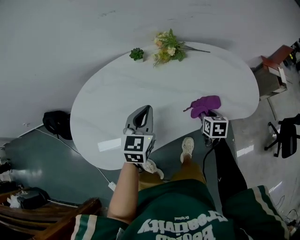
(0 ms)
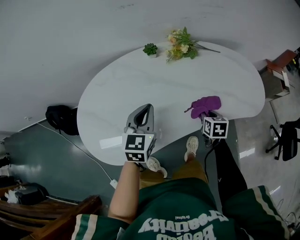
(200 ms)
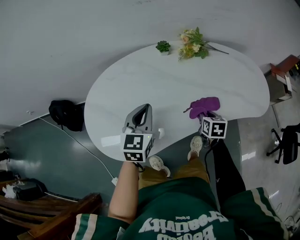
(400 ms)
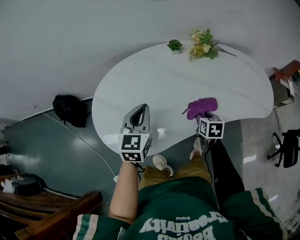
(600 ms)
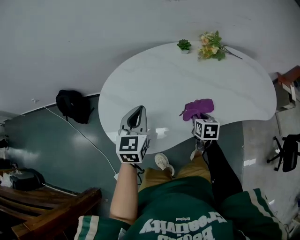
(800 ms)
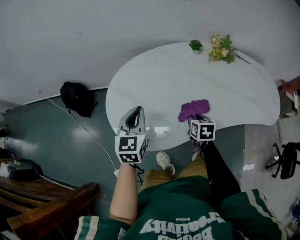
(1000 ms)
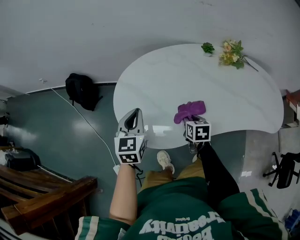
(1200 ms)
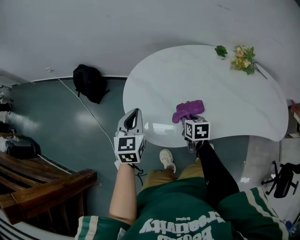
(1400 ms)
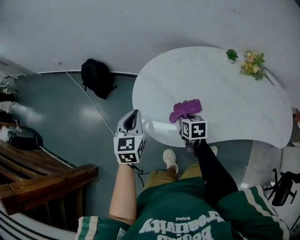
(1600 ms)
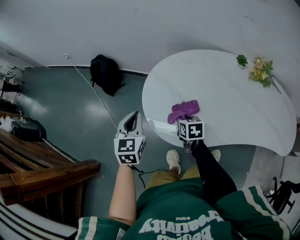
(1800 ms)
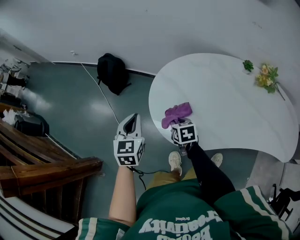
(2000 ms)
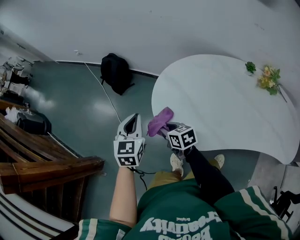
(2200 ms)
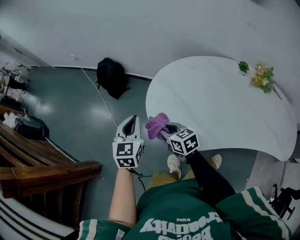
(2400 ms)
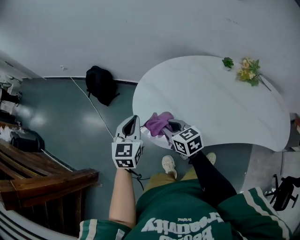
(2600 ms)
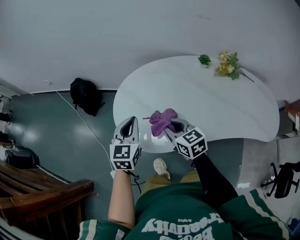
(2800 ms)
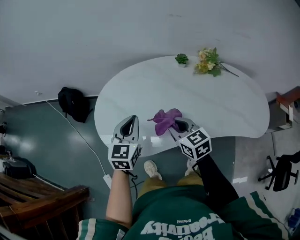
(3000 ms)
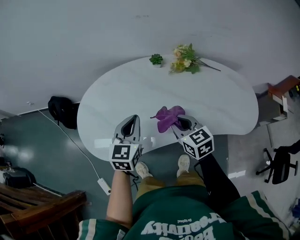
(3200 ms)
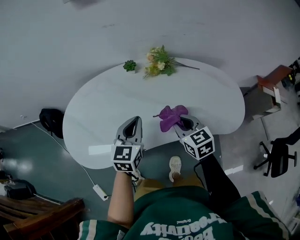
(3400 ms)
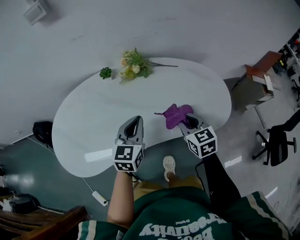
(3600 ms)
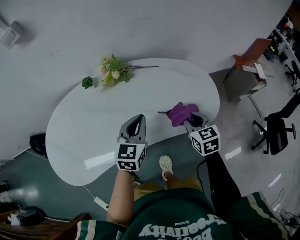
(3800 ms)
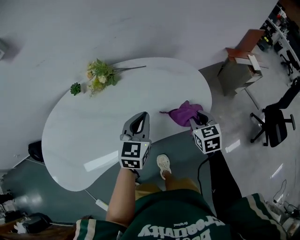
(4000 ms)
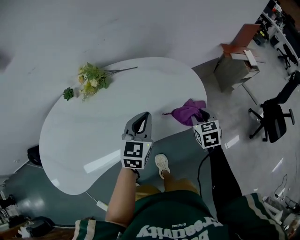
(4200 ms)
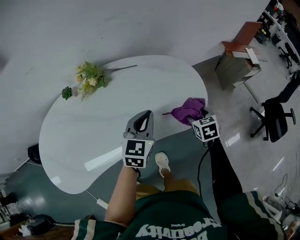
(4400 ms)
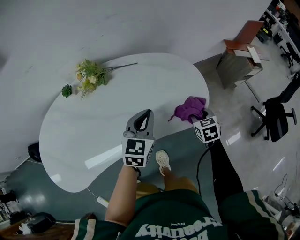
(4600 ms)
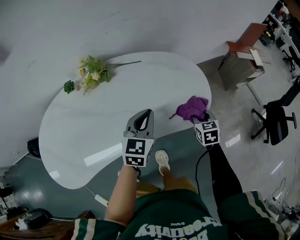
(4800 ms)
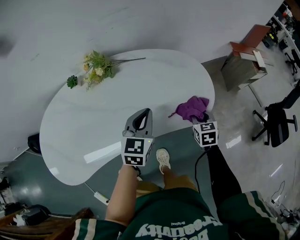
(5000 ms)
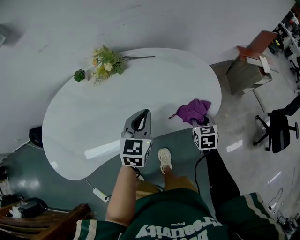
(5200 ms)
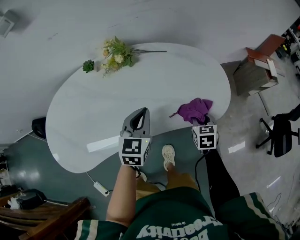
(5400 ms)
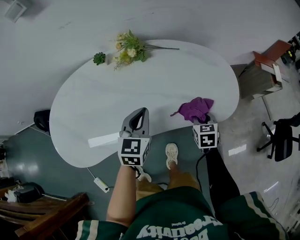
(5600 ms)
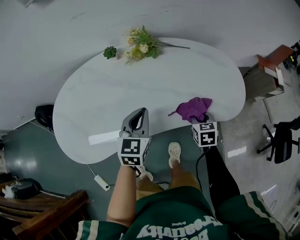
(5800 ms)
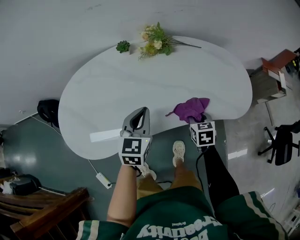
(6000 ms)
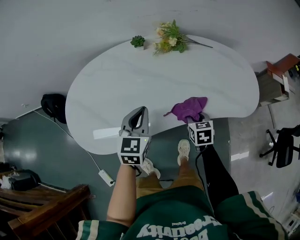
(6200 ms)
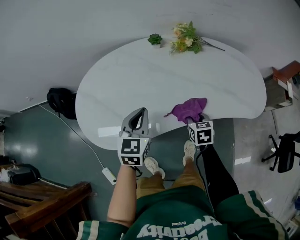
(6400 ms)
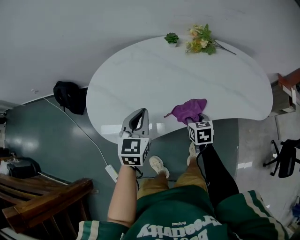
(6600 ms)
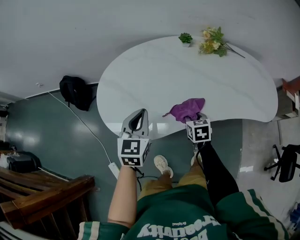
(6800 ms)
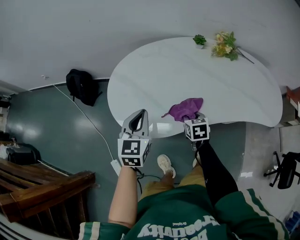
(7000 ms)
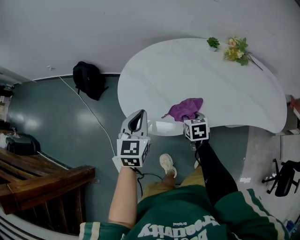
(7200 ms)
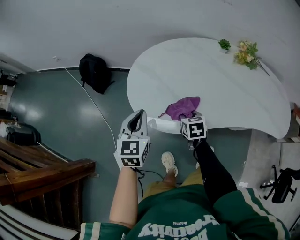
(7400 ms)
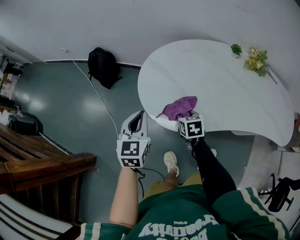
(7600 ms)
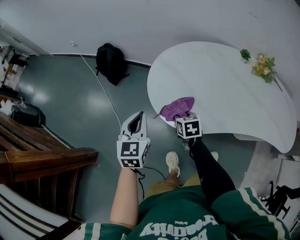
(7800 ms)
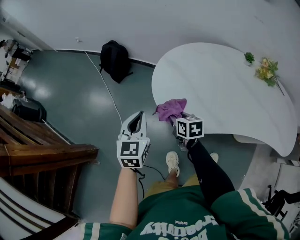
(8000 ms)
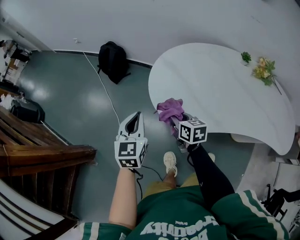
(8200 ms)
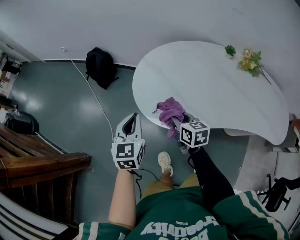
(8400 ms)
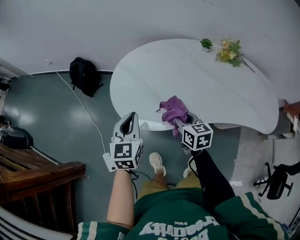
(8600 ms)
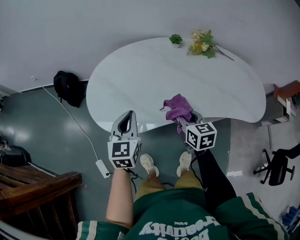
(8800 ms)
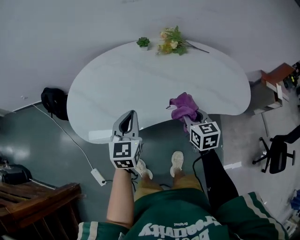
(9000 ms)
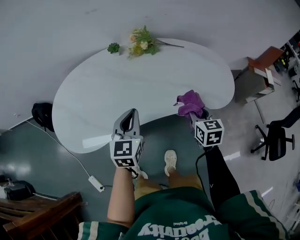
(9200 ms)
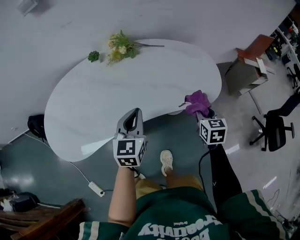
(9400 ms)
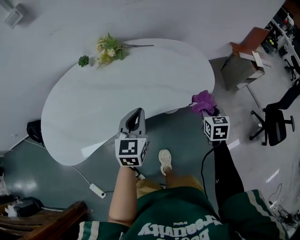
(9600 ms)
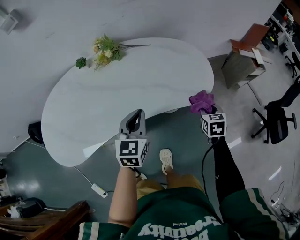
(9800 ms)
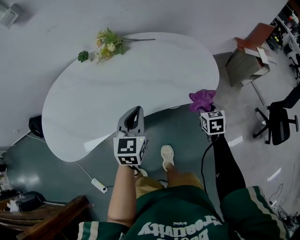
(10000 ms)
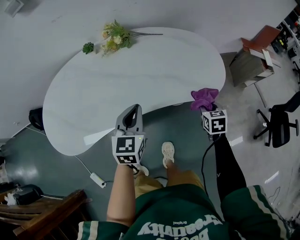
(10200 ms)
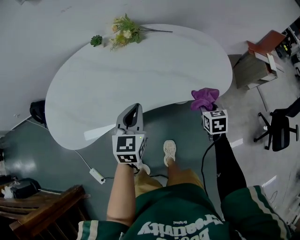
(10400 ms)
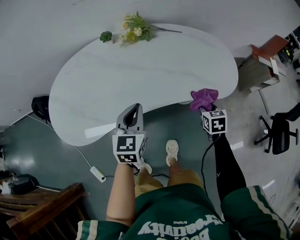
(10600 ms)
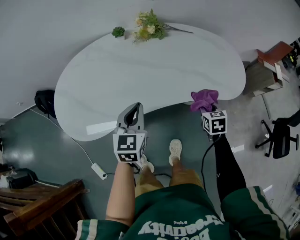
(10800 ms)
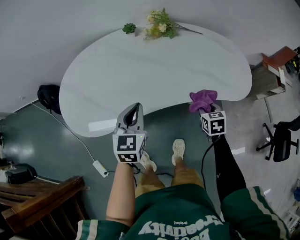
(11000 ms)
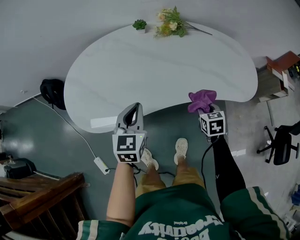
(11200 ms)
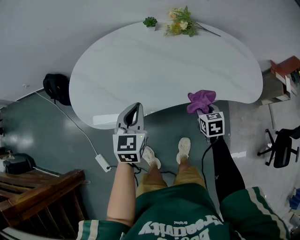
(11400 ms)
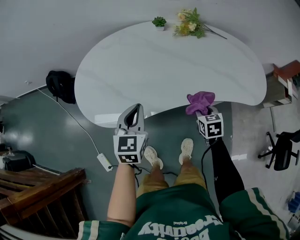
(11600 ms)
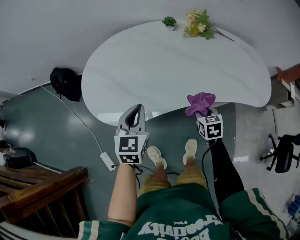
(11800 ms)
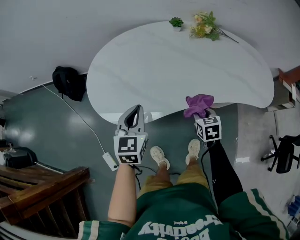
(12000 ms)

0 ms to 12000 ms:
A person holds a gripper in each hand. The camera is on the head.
0 ms to 1600 ms: The pair of grippers is taken approximately 50 cm. The left gripper turns by roughly 30 degrees. Meanwhile the right gripper changes its angle by some 30 degrees.
1600 ms to 3000 ms: The right gripper moves roughly 20 cm, and swivels approximately 30 degrees, while the left gripper ends up about 20 cm from where it was.
3000 ms to 4400 ms: The two grippers travel together, roughly 60 cm. The left gripper changes its angle by approximately 30 degrees; the right gripper rotates roughly 50 degrees, and opens up.
4400 ms to 6000 ms: The left gripper heads to the left and backward, covering roughly 30 cm, and changes its angle by some 20 degrees. The right gripper heads to the left, covering about 25 cm, and closes its fingers.
6000 ms to 7600 ms: The two grippers travel together, about 50 cm. The left gripper turns by approximately 30 degrees. Meanwhile the right gripper changes its angle by approximately 30 degrees.
7600 ms to 9000 ms: The right gripper moves about 40 cm, and changes its angle by about 30 degrees. The left gripper shifts by some 35 cm.
9000 ms to 10400 ms: The right gripper changes place by approximately 30 cm, and changes its angle by roughly 20 degrees; the left gripper ends up roughly 25 cm from where it was.
10400 ms to 12000 ms: The grippers both shift to the left by about 35 cm.

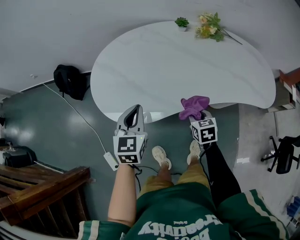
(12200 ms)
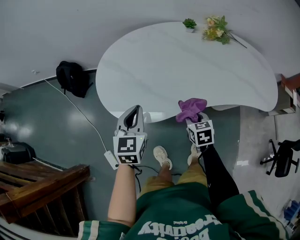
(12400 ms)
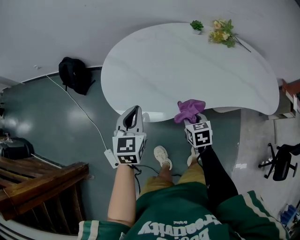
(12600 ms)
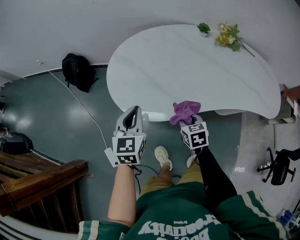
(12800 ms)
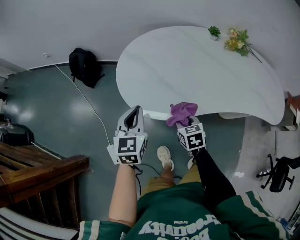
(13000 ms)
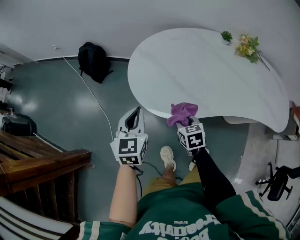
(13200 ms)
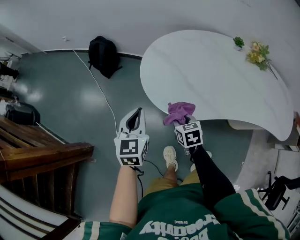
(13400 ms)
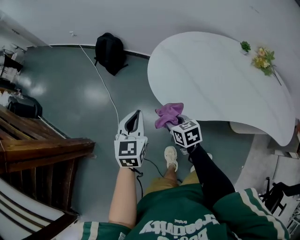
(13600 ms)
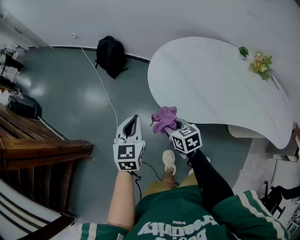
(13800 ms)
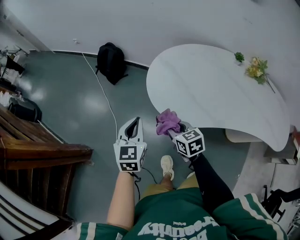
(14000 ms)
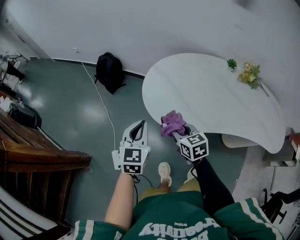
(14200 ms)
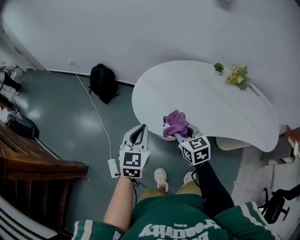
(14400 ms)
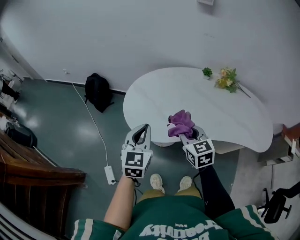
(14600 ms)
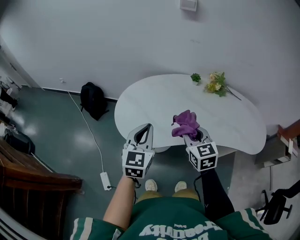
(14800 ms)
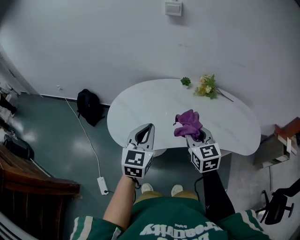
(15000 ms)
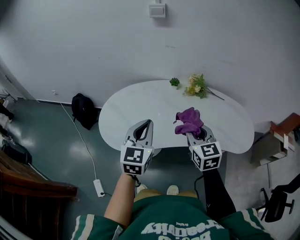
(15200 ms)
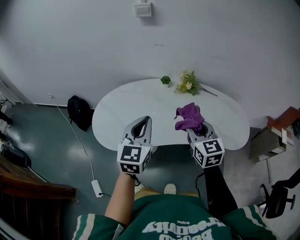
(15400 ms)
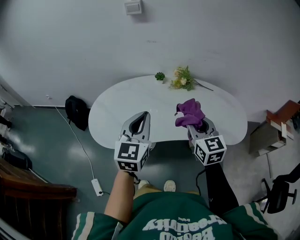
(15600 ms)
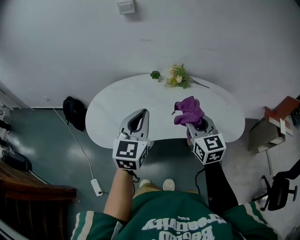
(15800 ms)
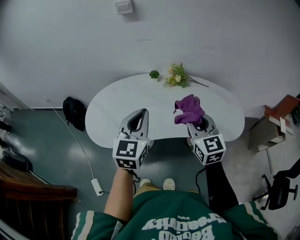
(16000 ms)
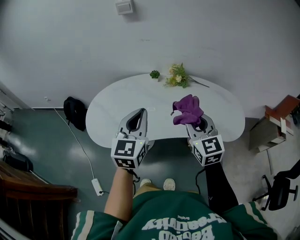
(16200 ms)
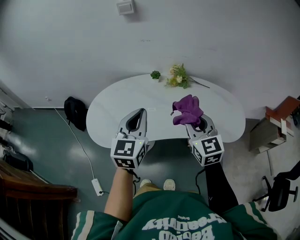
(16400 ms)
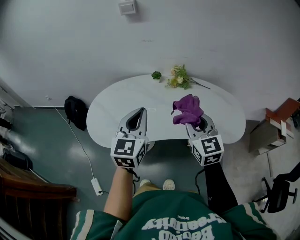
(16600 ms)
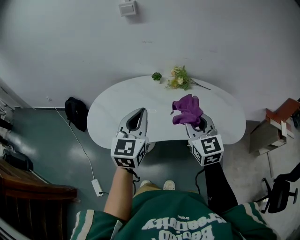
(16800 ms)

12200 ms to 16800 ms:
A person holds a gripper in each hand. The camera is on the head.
12200 ms to 13800 ms: The right gripper changes place by roughly 35 cm, and turns by roughly 40 degrees; the left gripper ends up about 25 cm from where it was, and changes its angle by roughly 20 degrees.
13800 ms to 15200 ms: The two grippers travel together, about 40 cm. The right gripper changes its angle by roughly 40 degrees; the left gripper rotates approximately 30 degrees.
15200 ms to 16800 ms: The grippers both shift to the right by roughly 10 cm.

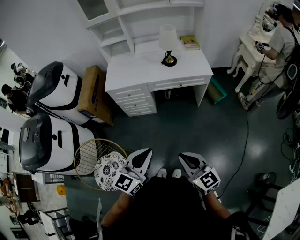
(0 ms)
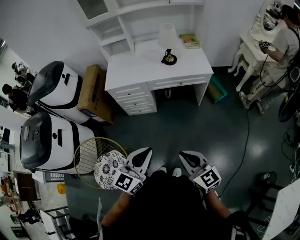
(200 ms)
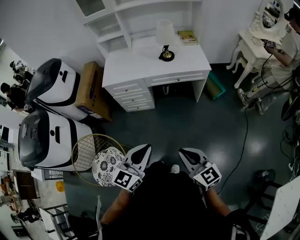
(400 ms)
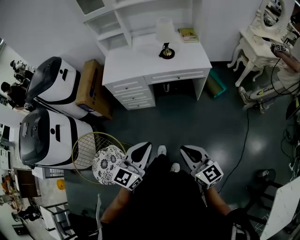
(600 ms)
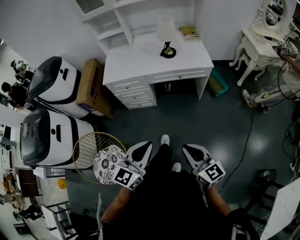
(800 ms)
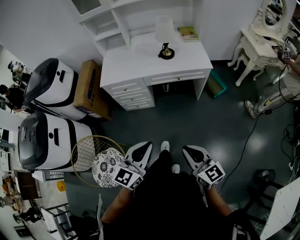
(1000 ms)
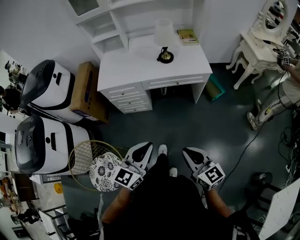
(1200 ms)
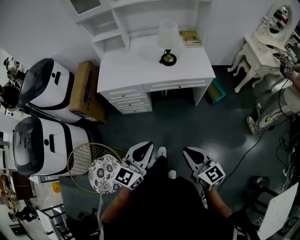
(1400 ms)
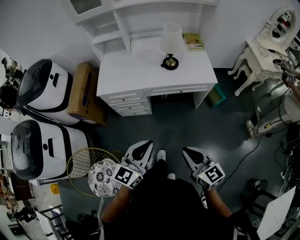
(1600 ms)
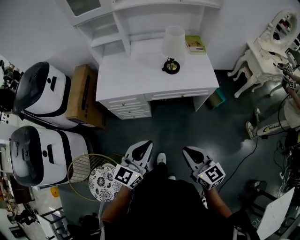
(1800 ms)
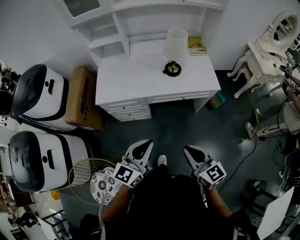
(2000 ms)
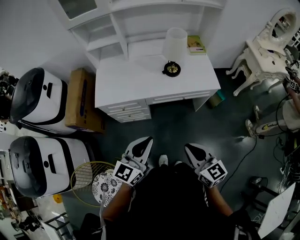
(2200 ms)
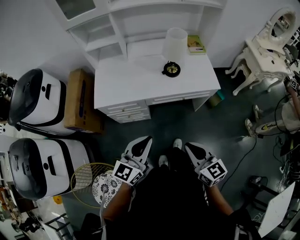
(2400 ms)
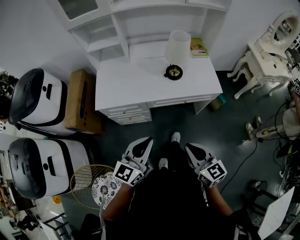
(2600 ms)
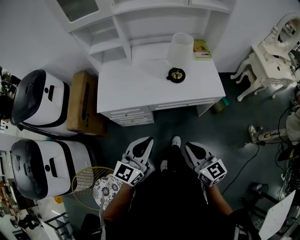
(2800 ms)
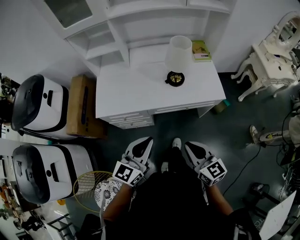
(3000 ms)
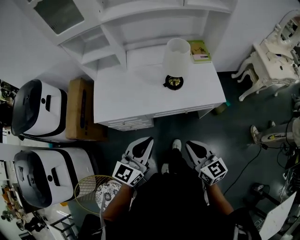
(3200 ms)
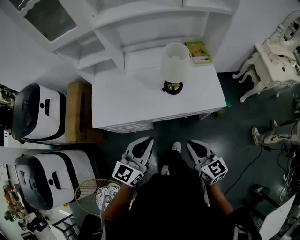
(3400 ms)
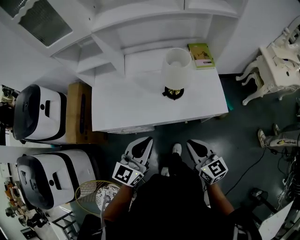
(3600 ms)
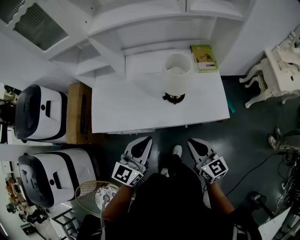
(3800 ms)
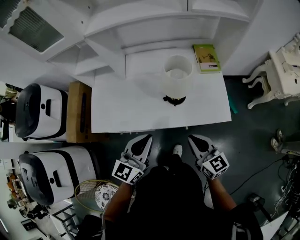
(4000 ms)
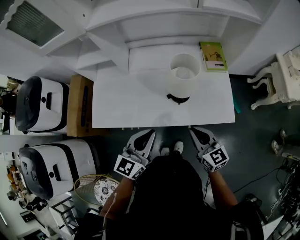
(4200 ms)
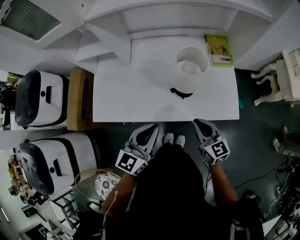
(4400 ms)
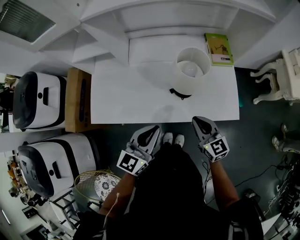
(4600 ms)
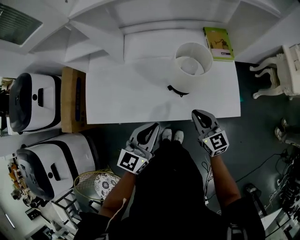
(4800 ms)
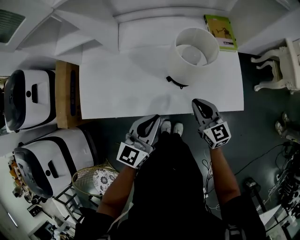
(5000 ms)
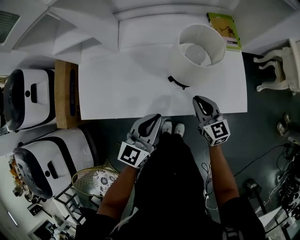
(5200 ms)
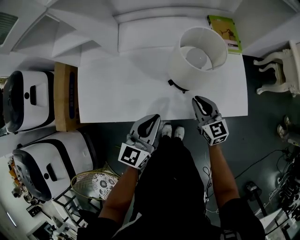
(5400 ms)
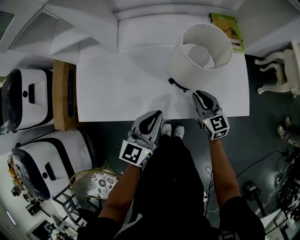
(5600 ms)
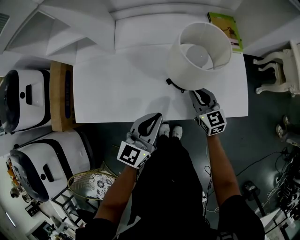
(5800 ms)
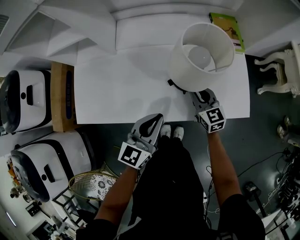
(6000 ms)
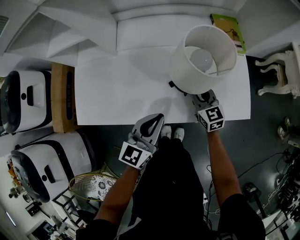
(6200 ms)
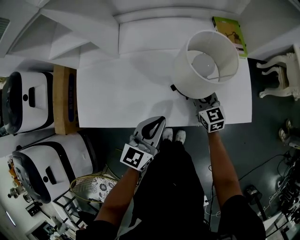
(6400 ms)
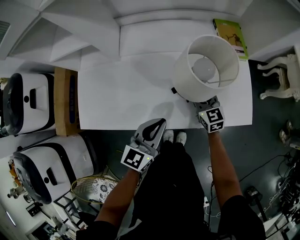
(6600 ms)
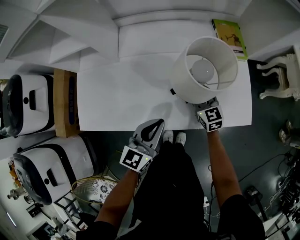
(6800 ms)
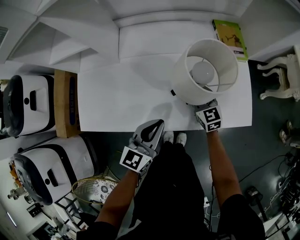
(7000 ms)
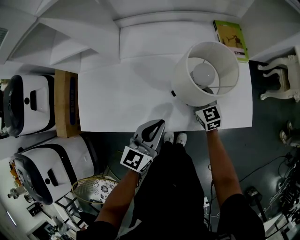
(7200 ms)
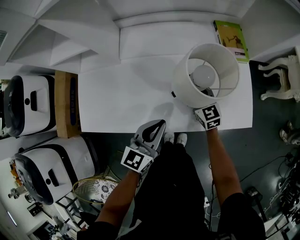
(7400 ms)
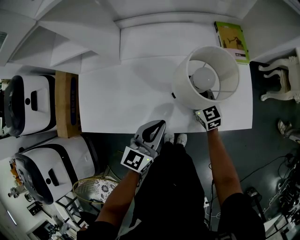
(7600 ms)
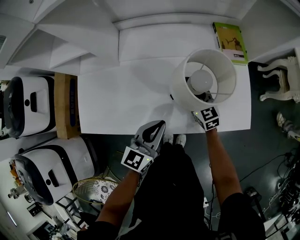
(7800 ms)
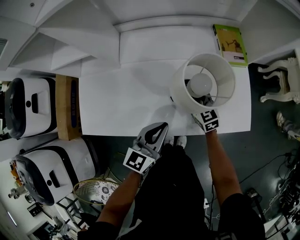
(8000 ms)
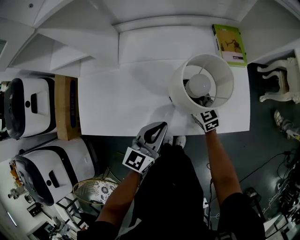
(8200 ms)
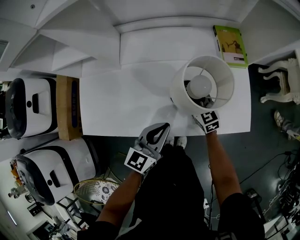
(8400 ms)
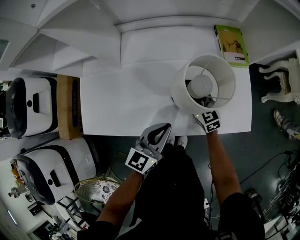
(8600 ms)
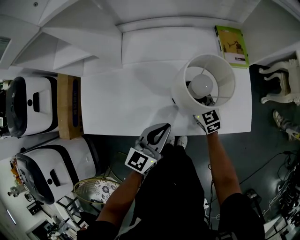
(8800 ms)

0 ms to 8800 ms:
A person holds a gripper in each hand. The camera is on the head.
0 ms to 1400 ms: The right gripper goes some 10 cm forward and to the right; the left gripper travels forward by roughly 10 cm.
1400 ms to 3000 ms: Both grippers travel together forward, roughly 25 cm.
3000 ms to 4400 ms: The grippers both shift forward by some 25 cm.
4400 ms to 5800 ms: The grippers both shift downward and forward by some 15 cm.
5800 ms to 7400 ms: The right gripper goes roughly 5 cm forward, and opens its fingers.
7400 ms to 8800 ms: The grippers stay close to where they were, moving slightly.
